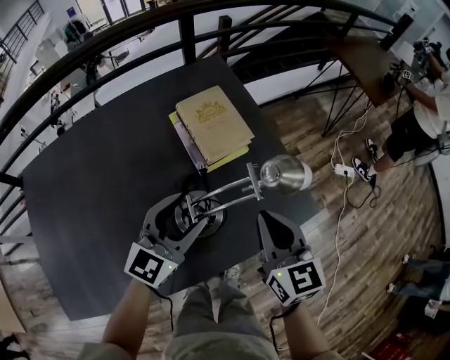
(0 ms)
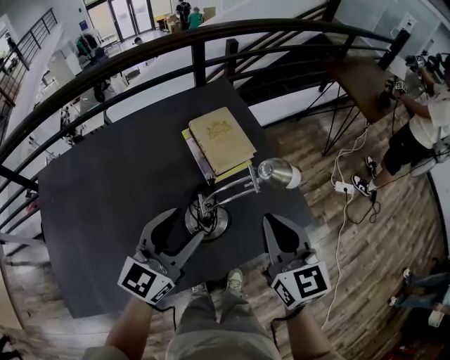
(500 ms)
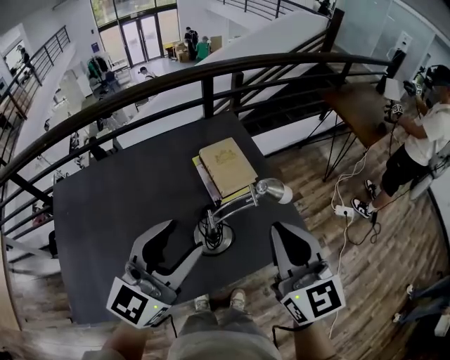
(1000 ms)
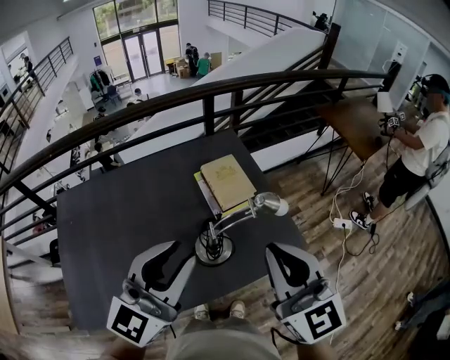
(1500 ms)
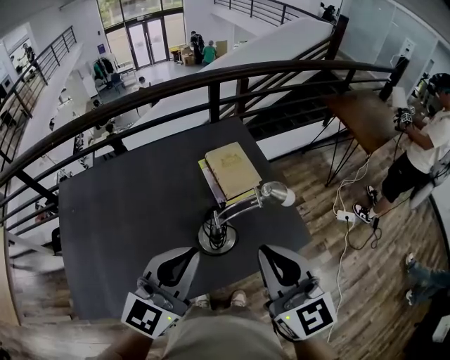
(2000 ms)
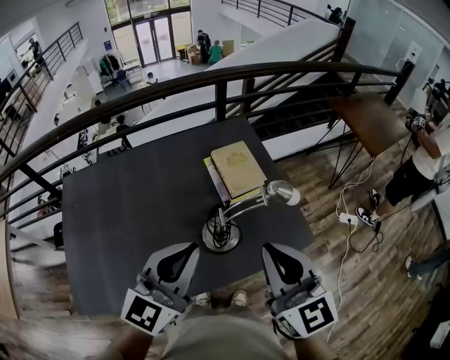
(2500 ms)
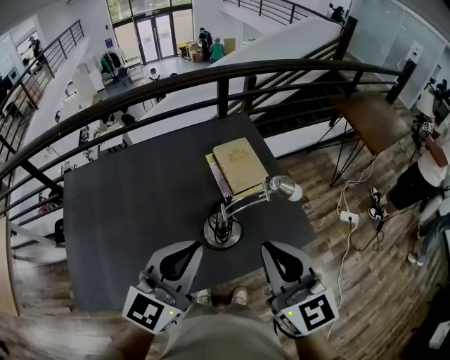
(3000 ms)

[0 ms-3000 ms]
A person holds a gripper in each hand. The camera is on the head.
0 ms to 1500 ms: The left gripper heads upward and backward, covering some 30 cm, and closes up. Meanwhile the right gripper travels upward by approximately 25 cm, and rotates approximately 30 degrees.
1500 ms to 3000 ms: The right gripper ends up about 5 cm from where it was. The left gripper goes roughly 5 cm downward, and closes up.

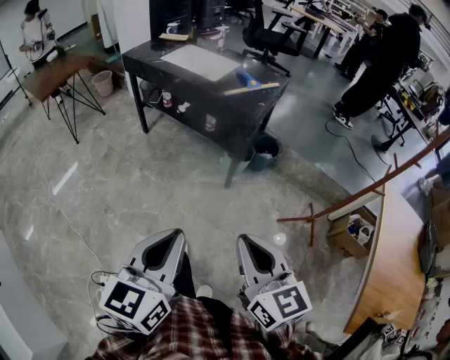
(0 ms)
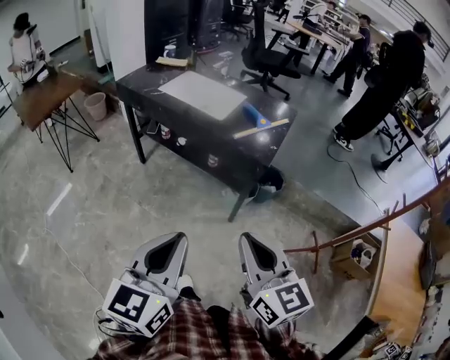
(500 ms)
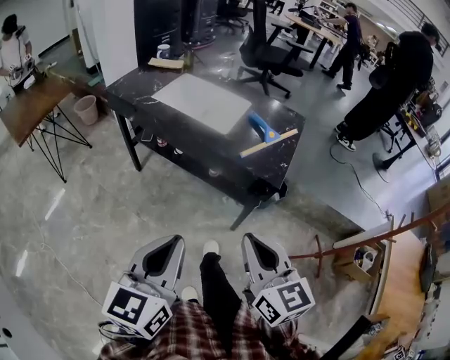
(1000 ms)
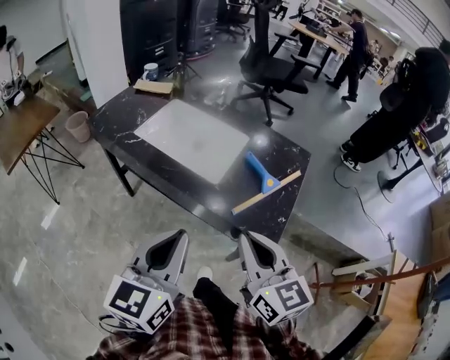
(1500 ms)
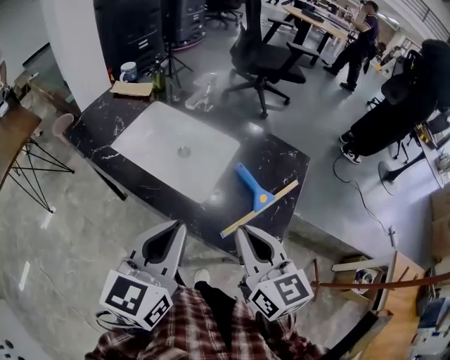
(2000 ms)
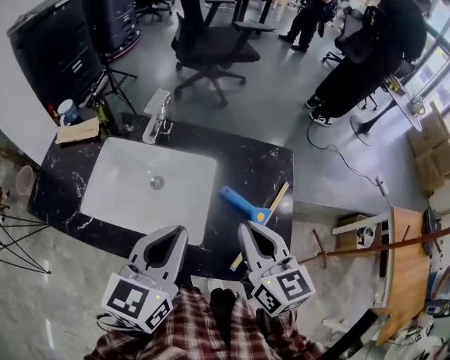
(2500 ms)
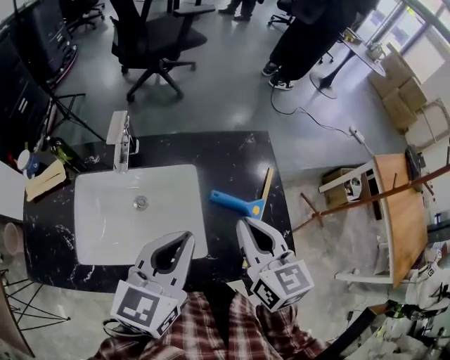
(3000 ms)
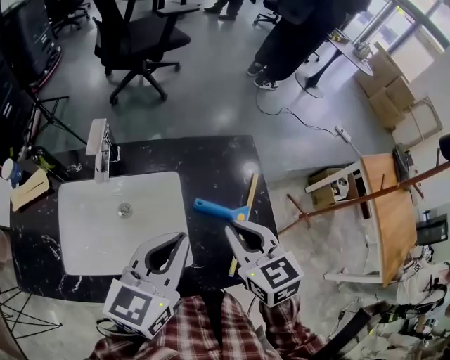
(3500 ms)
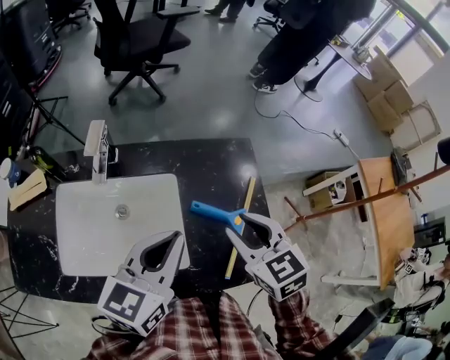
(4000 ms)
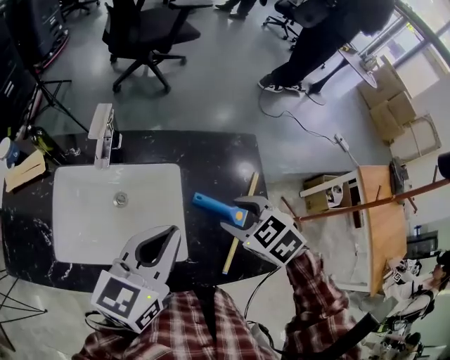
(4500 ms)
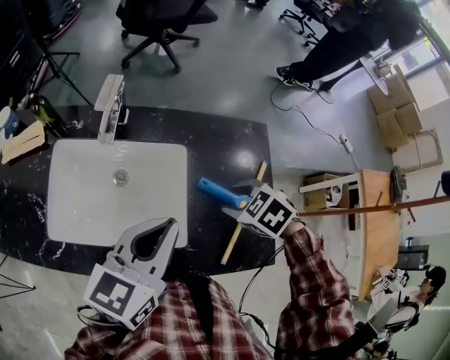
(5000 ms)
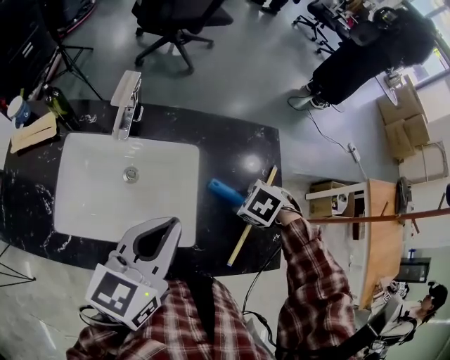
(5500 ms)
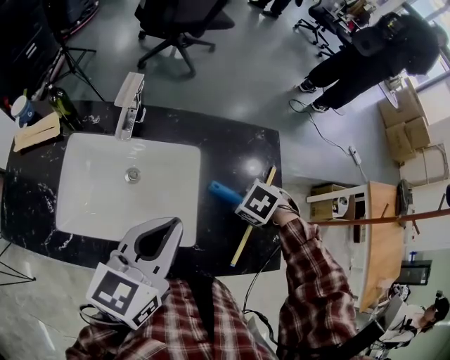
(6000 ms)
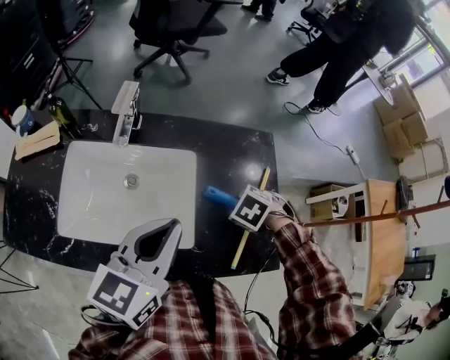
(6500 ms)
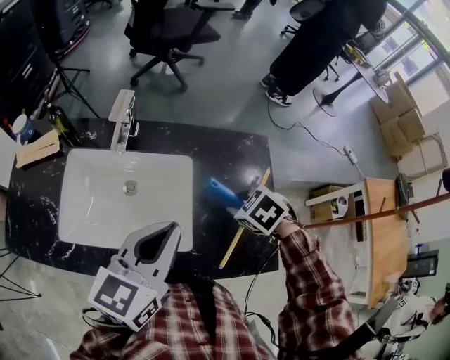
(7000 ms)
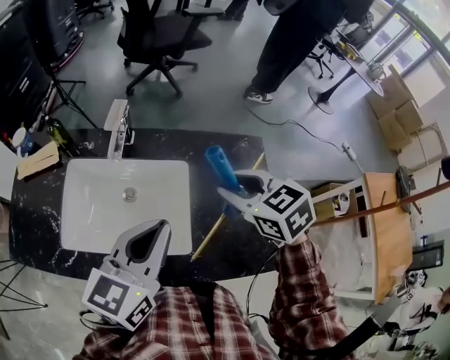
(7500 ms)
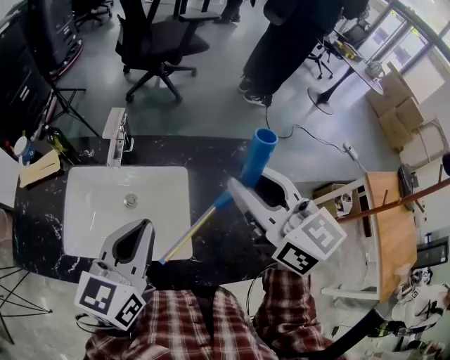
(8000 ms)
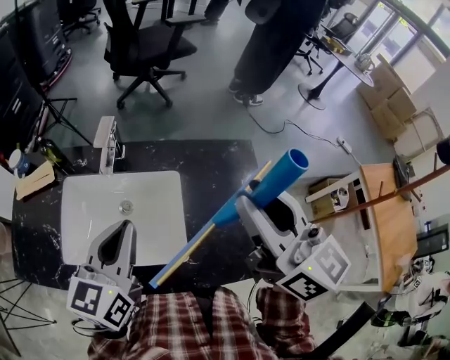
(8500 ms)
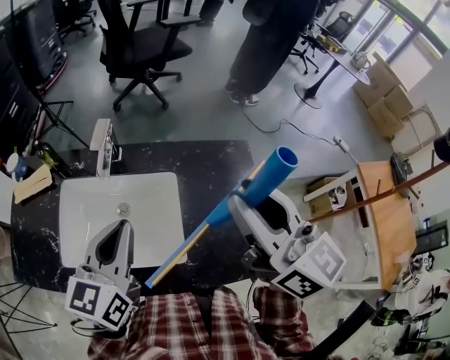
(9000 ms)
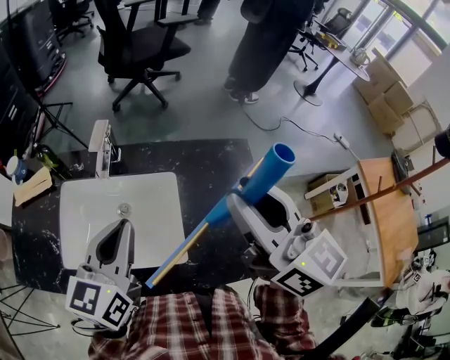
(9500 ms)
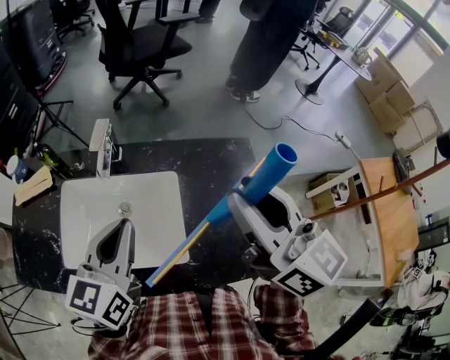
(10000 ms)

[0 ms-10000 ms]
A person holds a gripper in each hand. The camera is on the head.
0 ms to 2000 ms: The pair of grippers is taken forward, about 60 cm.
2000 ms to 4000 ms: The left gripper shifts by about 20 cm, and swivels about 40 degrees. Meanwhile the right gripper changes place by some 15 cm, rotates about 40 degrees, and opens up.
4000 ms to 6000 ms: The left gripper ends up approximately 5 cm from where it was, while the right gripper heads downward, covering some 15 cm, and tilts its fingers some 50 degrees downward.
6000 ms to 8000 ms: The right gripper travels upward by some 30 cm, and tilts its fingers about 80 degrees upward.
8000 ms to 10000 ms: The grippers move only a little.

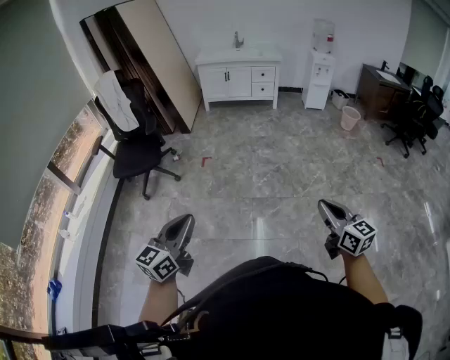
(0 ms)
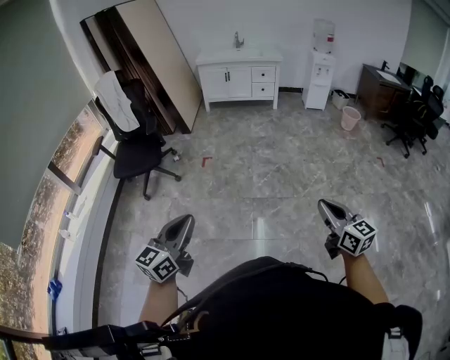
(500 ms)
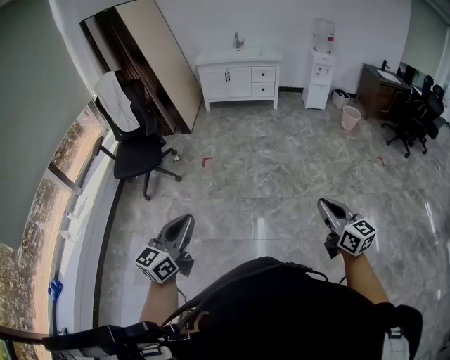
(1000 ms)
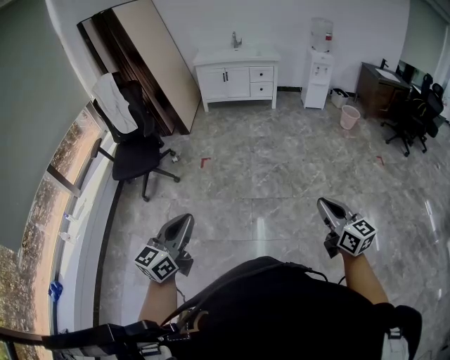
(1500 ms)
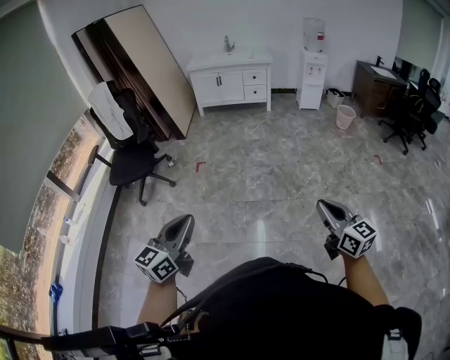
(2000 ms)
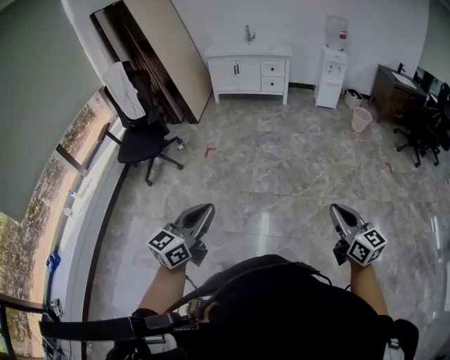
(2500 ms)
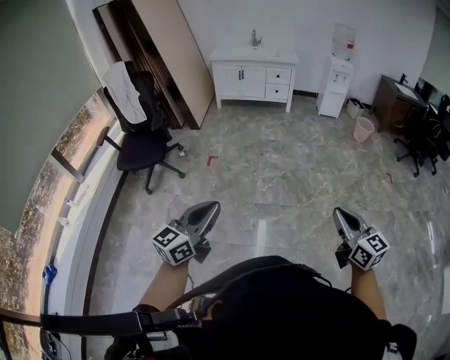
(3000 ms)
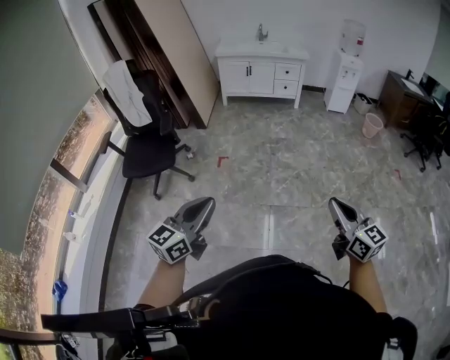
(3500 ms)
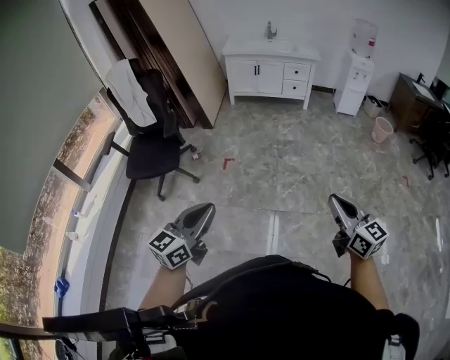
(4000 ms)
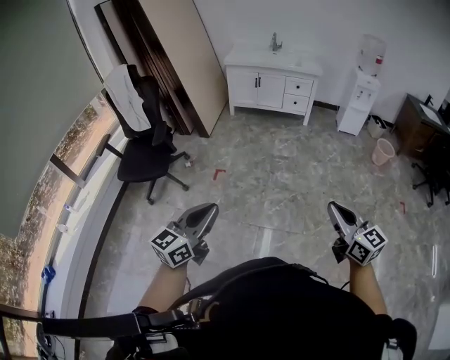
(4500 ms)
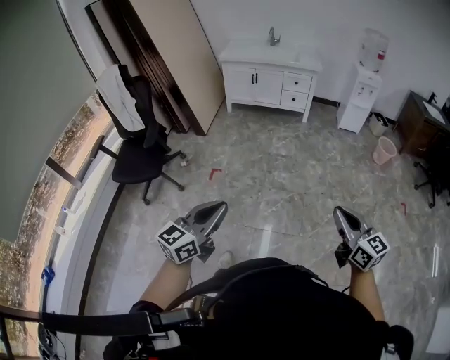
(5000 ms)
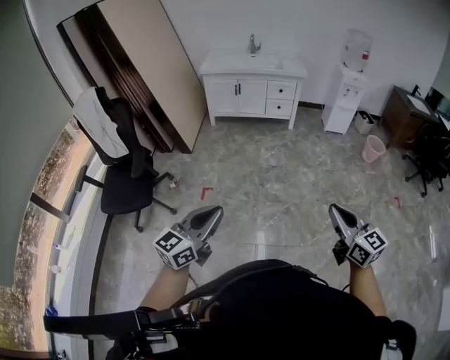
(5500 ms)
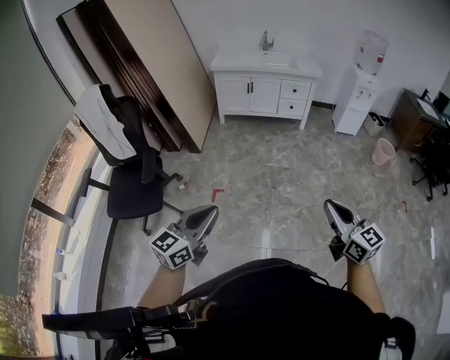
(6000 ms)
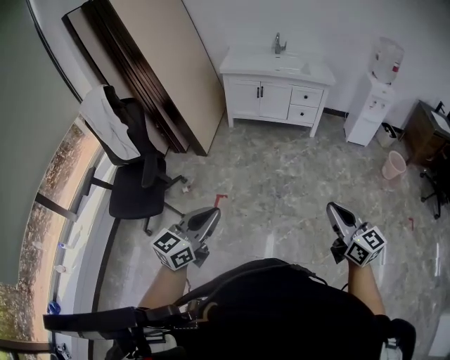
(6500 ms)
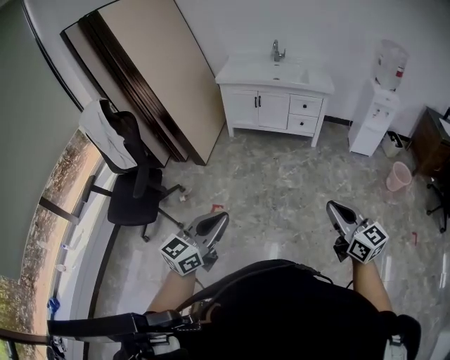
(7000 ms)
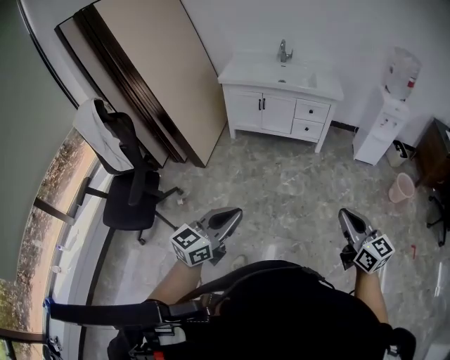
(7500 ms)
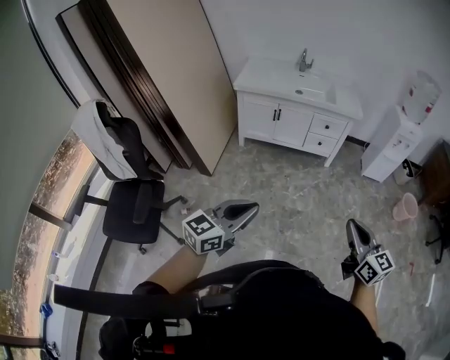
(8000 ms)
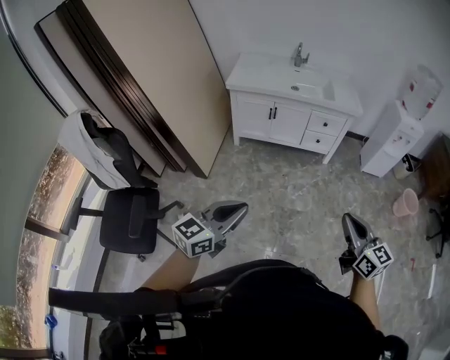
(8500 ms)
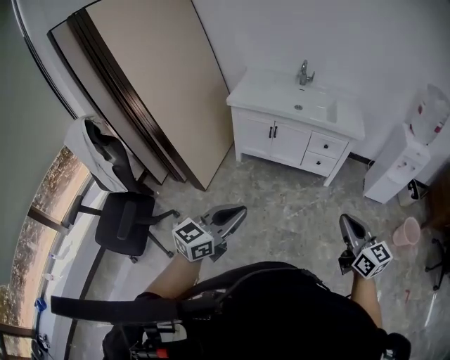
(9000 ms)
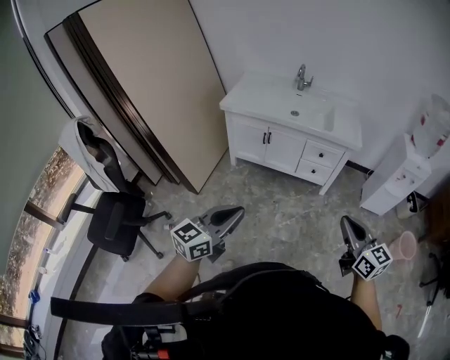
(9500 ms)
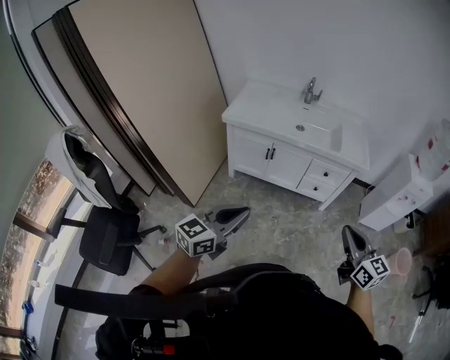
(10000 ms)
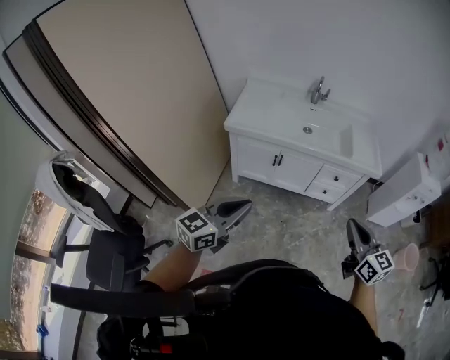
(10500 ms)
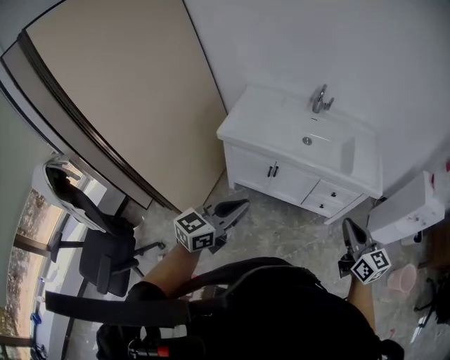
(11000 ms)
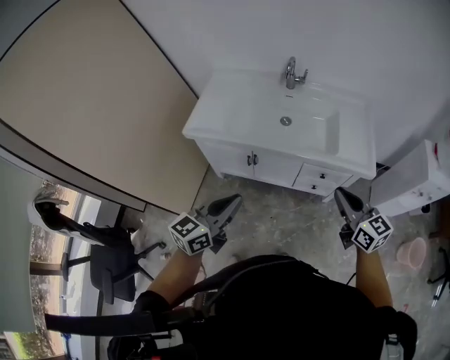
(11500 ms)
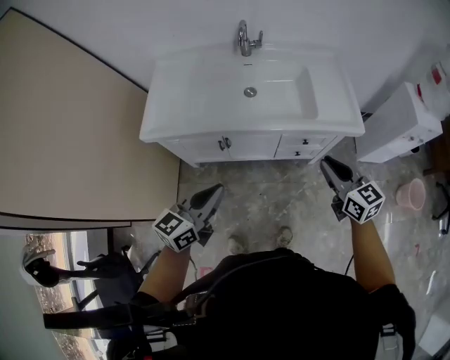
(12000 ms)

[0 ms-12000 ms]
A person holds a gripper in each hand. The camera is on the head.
0 ms to 2000 ms: Both grippers move to the right, approximately 10 cm.
2000 ms to 4000 ms: The grippers both shift forward and to the left by roughly 30 cm.
4000 ms to 6000 ms: The two grippers go approximately 35 cm forward.
6000 ms to 8000 ms: The pair of grippers is taken forward, about 40 cm.
8000 ms to 10000 ms: The two grippers go roughly 40 cm forward.
10000 ms to 12000 ms: The pair of grippers is taken forward, about 50 cm.

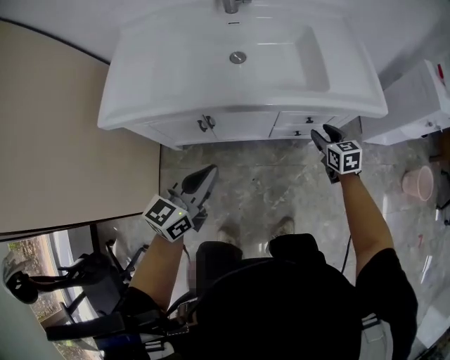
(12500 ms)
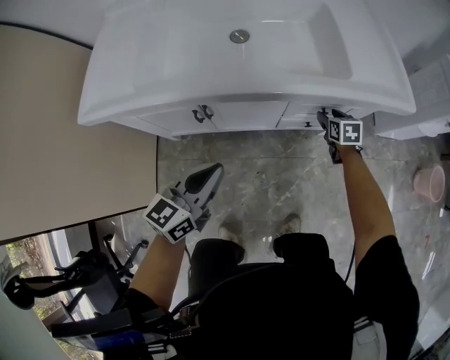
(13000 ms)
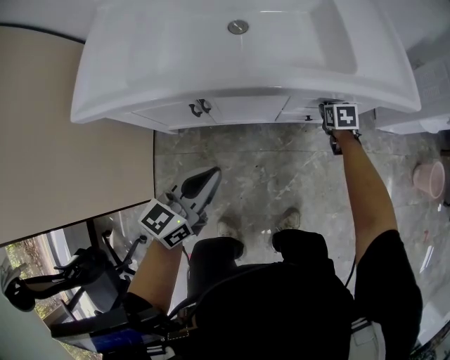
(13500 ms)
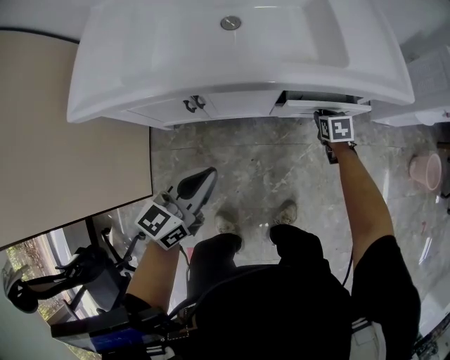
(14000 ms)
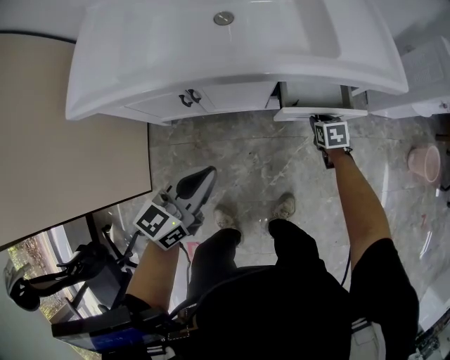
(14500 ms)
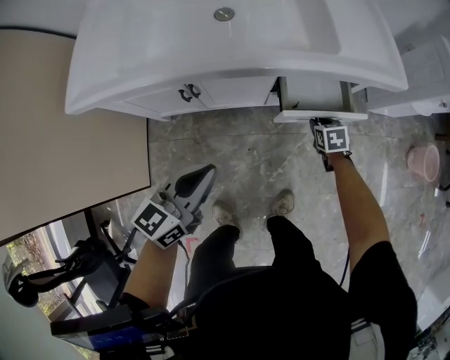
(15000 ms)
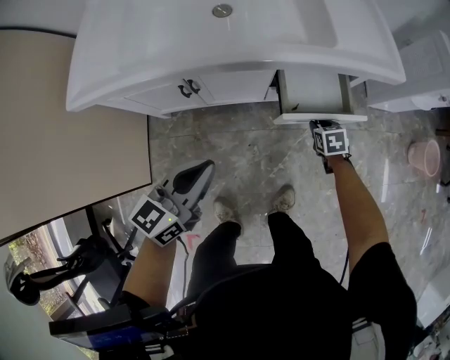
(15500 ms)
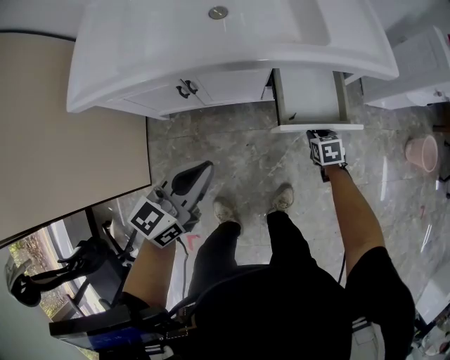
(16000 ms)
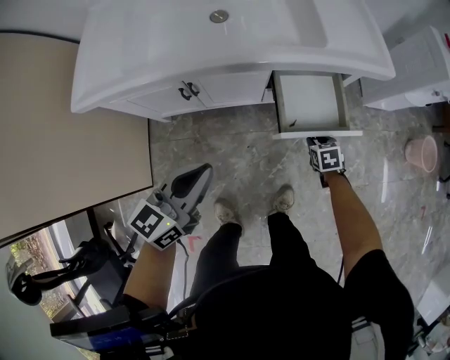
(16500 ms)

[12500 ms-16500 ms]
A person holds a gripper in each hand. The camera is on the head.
12500 ms to 14500 ms: The left gripper goes about 5 cm downward; the right gripper shifts roughly 15 cm downward, and changes its angle by approximately 20 degrees.
14500 ms to 16500 ms: The right gripper goes roughly 10 cm backward, while the left gripper moves about 5 cm.
